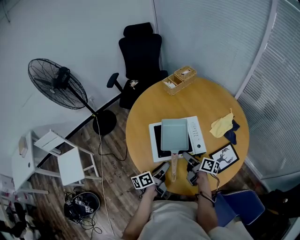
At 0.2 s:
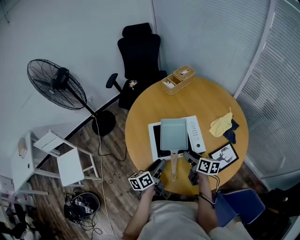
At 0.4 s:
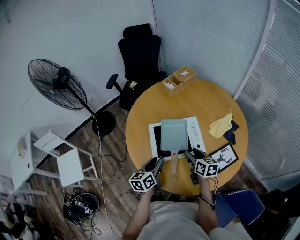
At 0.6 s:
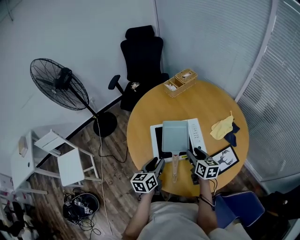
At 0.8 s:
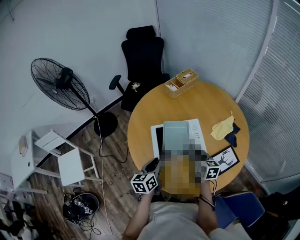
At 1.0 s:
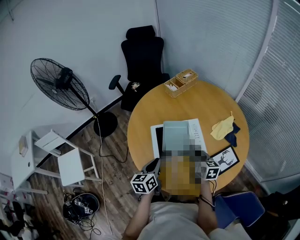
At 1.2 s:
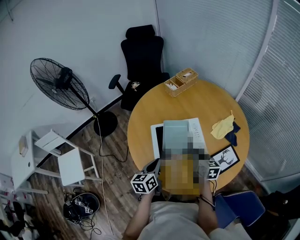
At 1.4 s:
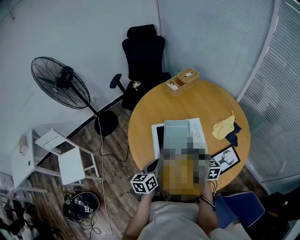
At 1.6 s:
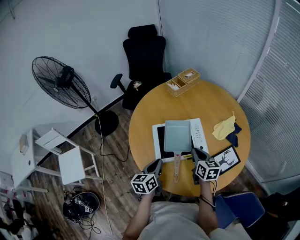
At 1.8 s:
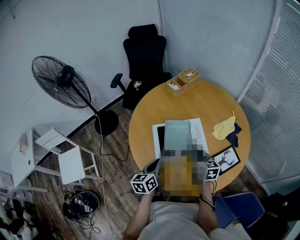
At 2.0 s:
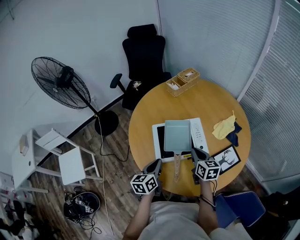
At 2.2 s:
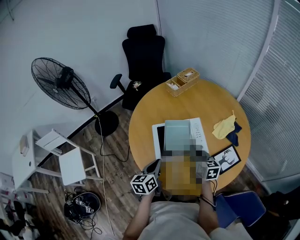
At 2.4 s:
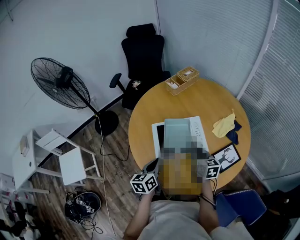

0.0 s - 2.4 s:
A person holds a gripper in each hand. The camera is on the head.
0.0 s - 1.2 s: The right gripper heads upward, covering some 5 cm, changes its angle by approximately 40 degrees, and closes up; the left gripper ends up some 5 cm from where it was, changes its angle by about 40 degrees, and closes its fingers.
1.2 s - 2.4 s: There are only small adjustments of the grippers.

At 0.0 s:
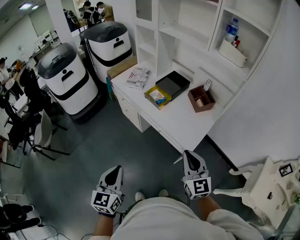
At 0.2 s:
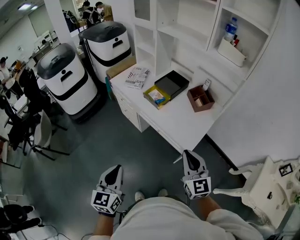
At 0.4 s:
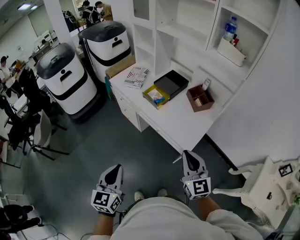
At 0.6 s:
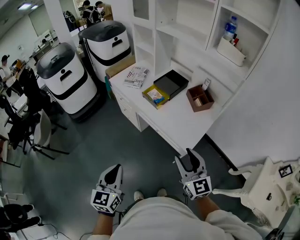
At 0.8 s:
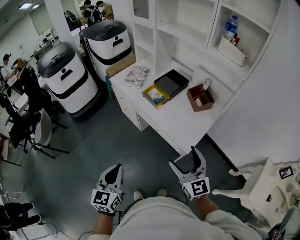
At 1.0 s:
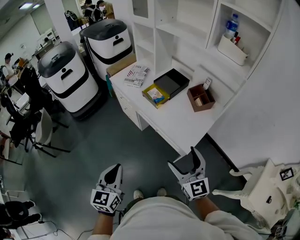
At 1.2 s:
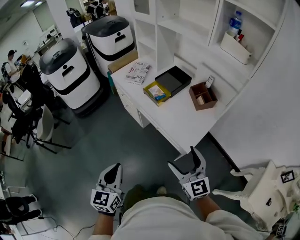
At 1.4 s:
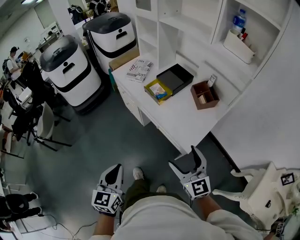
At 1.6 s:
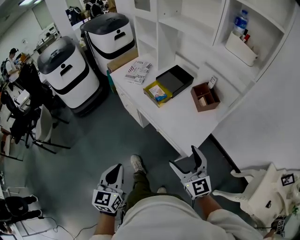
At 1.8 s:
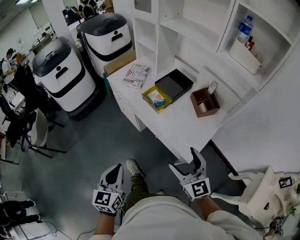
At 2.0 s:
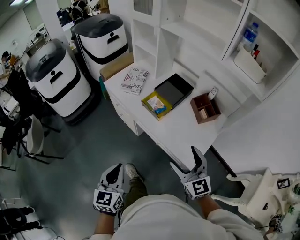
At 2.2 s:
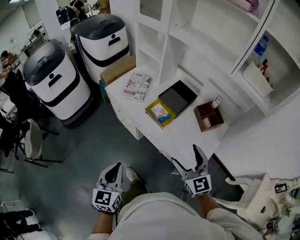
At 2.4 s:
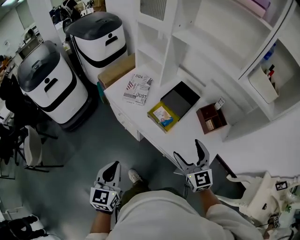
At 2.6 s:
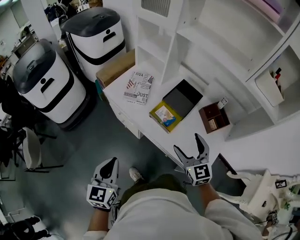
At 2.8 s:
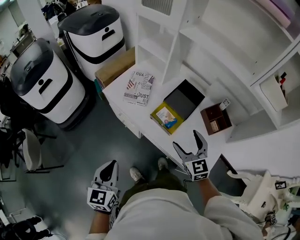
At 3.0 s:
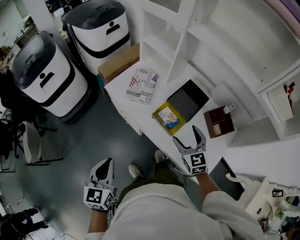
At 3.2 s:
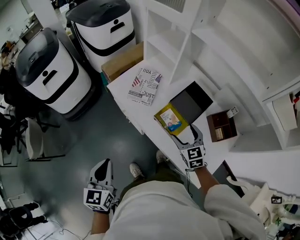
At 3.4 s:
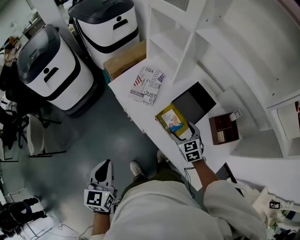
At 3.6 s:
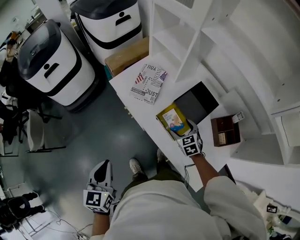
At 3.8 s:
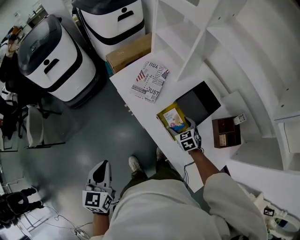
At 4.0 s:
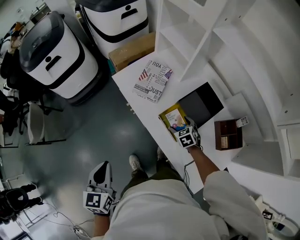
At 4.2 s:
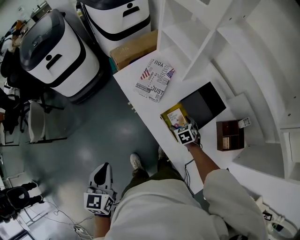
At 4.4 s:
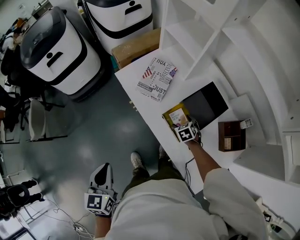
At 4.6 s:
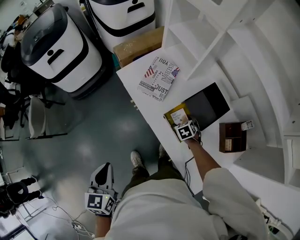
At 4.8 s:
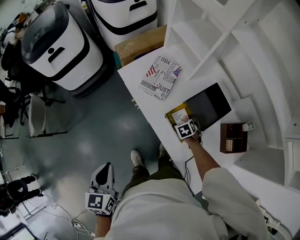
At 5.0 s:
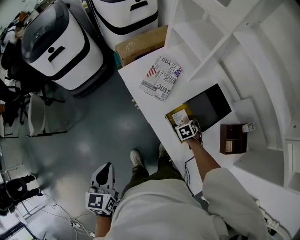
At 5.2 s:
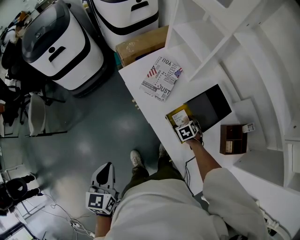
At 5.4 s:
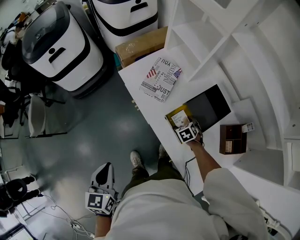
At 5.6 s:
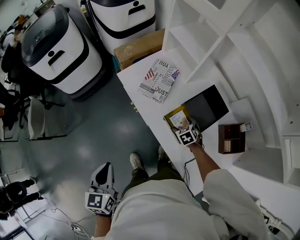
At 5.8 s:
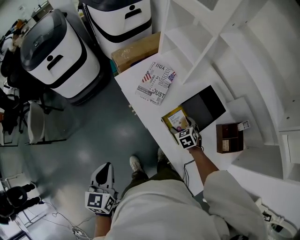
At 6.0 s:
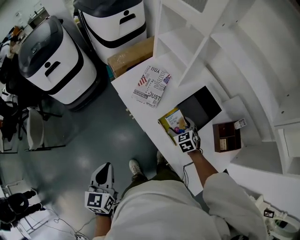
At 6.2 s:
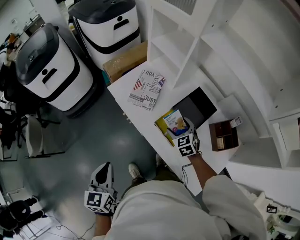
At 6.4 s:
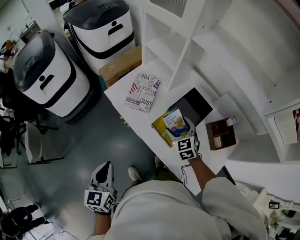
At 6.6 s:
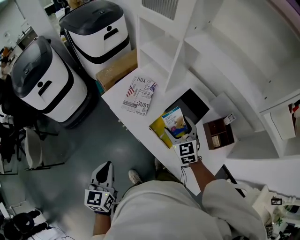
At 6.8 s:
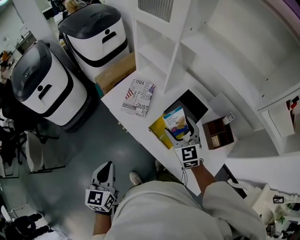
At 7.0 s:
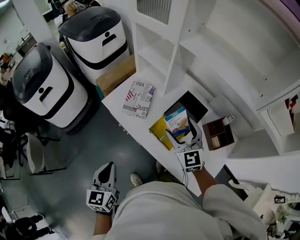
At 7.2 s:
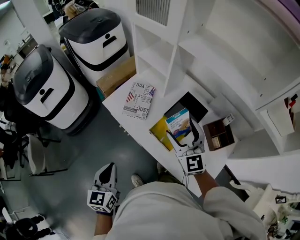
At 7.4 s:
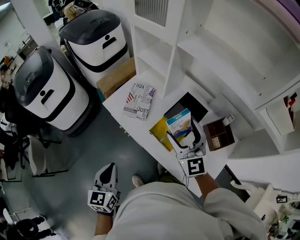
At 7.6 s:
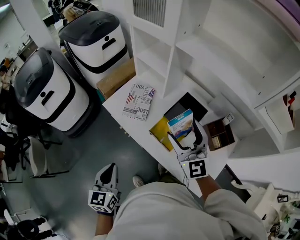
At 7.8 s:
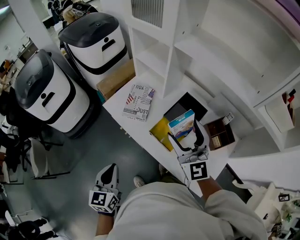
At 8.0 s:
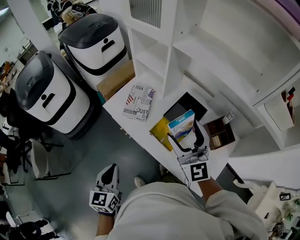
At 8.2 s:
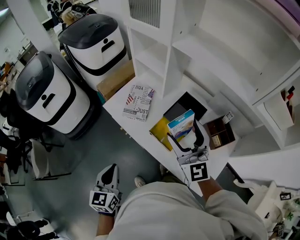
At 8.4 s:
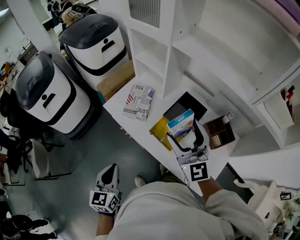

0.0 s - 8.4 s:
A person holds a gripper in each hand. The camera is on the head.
0.0 s - 1.4 s: The right gripper opens up, while the left gripper moves to the right, roughly 5 cm.
1.4 s - 2.8 s: The right gripper travels forward by some 35 cm. The left gripper moves forward and to the left, approximately 35 cm.
2.8 s - 4.2 s: The left gripper swivels about 20 degrees. The right gripper is displaced downward and forward by roughly 30 cm, and angles its fingers downward, by roughly 40 degrees.
4.2 s - 5.6 s: There are only small adjustments of the grippers.
5.6 s - 7.0 s: The right gripper is displaced upward by roughly 30 cm, and points its fingers some 50 degrees further upward. The left gripper travels to the right and forward by approximately 5 cm.
7.0 s - 8.4 s: The right gripper goes approximately 10 cm upward.

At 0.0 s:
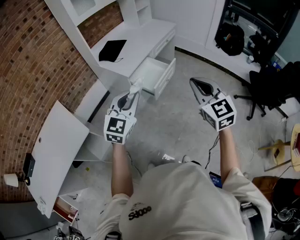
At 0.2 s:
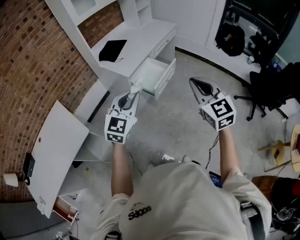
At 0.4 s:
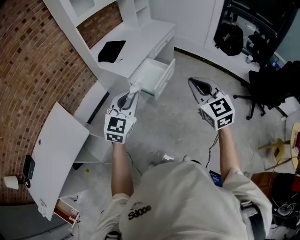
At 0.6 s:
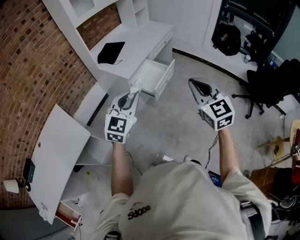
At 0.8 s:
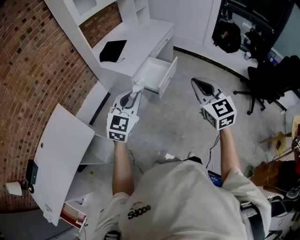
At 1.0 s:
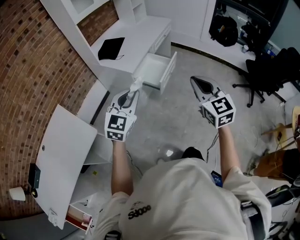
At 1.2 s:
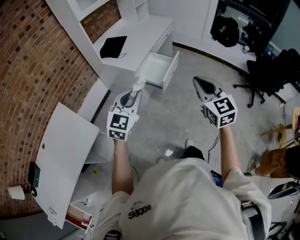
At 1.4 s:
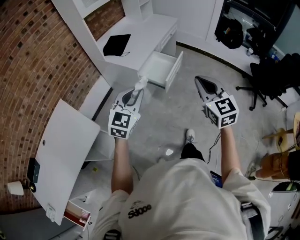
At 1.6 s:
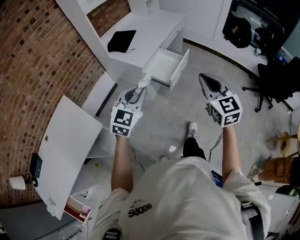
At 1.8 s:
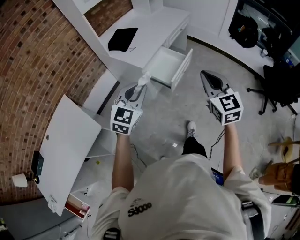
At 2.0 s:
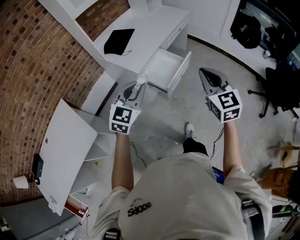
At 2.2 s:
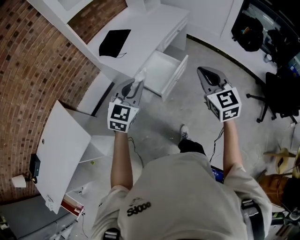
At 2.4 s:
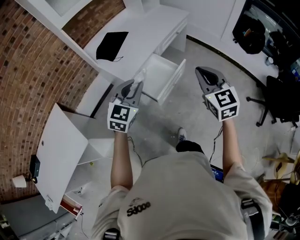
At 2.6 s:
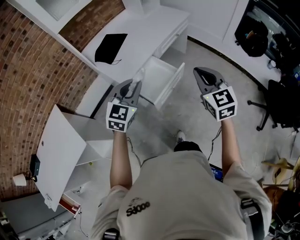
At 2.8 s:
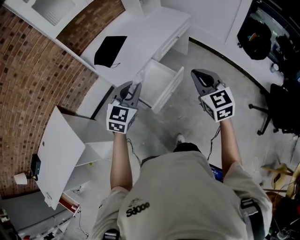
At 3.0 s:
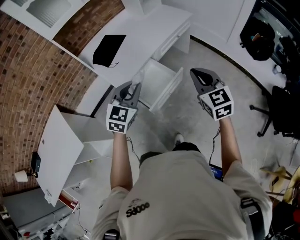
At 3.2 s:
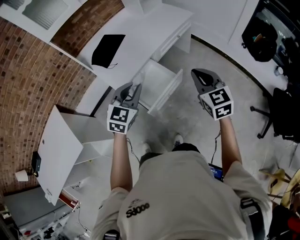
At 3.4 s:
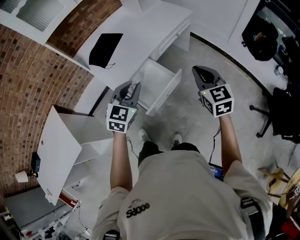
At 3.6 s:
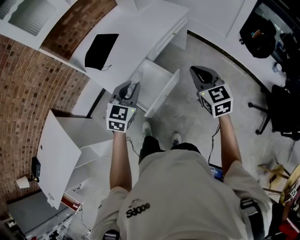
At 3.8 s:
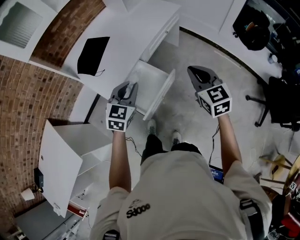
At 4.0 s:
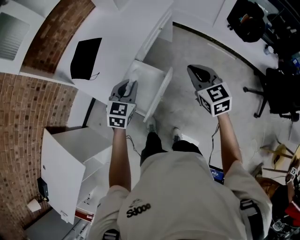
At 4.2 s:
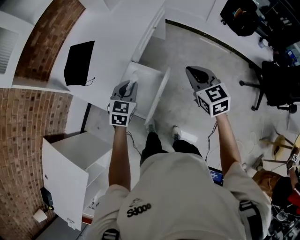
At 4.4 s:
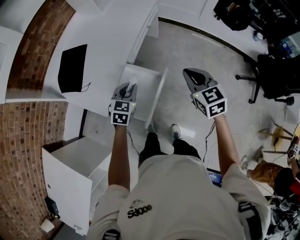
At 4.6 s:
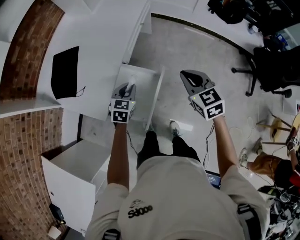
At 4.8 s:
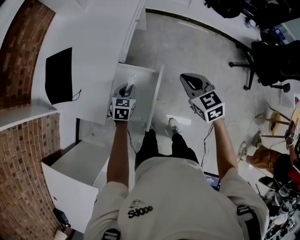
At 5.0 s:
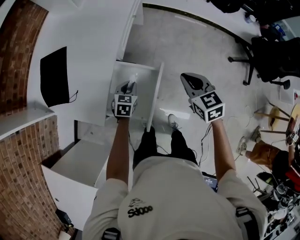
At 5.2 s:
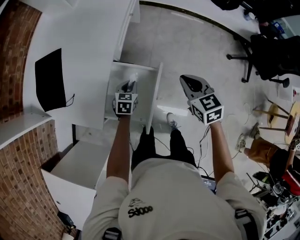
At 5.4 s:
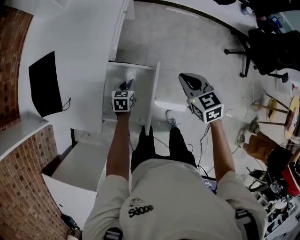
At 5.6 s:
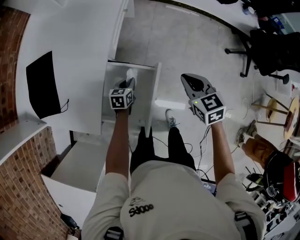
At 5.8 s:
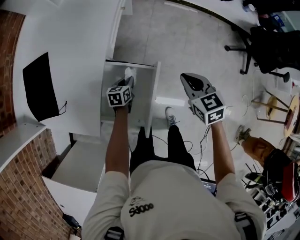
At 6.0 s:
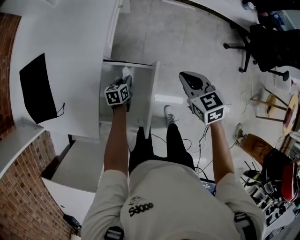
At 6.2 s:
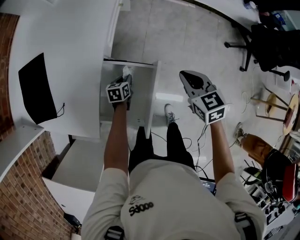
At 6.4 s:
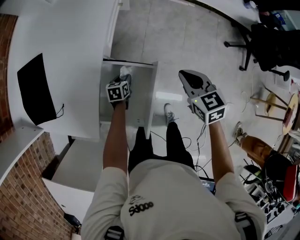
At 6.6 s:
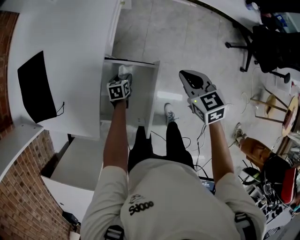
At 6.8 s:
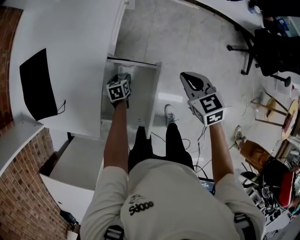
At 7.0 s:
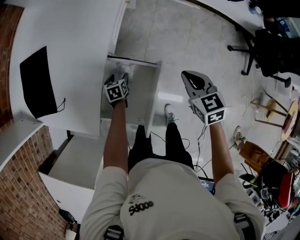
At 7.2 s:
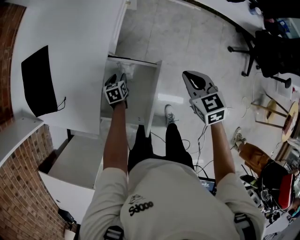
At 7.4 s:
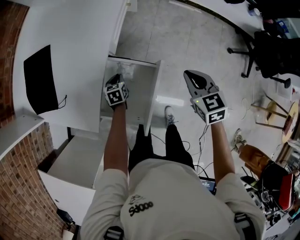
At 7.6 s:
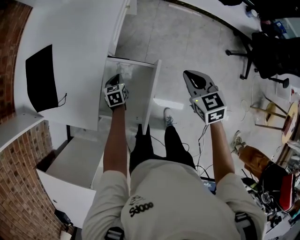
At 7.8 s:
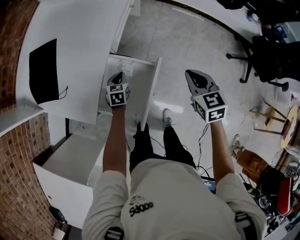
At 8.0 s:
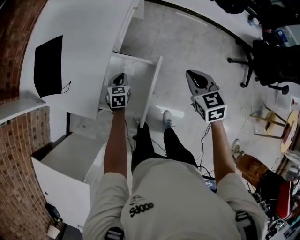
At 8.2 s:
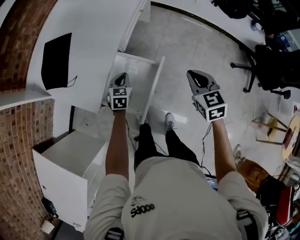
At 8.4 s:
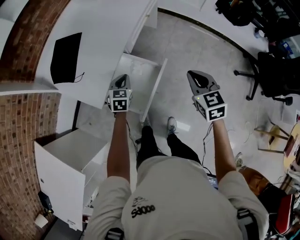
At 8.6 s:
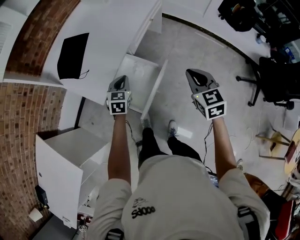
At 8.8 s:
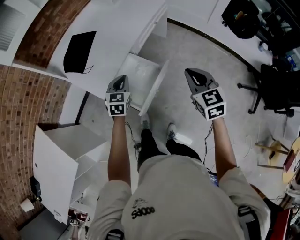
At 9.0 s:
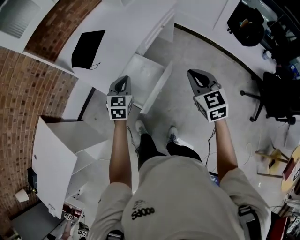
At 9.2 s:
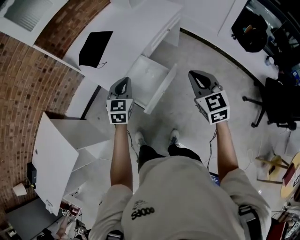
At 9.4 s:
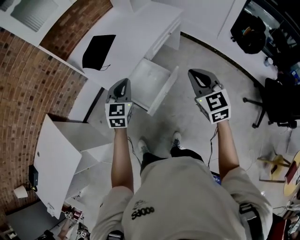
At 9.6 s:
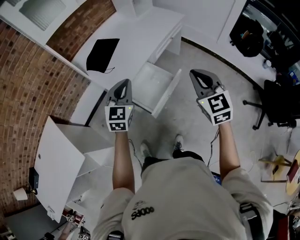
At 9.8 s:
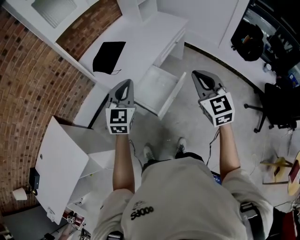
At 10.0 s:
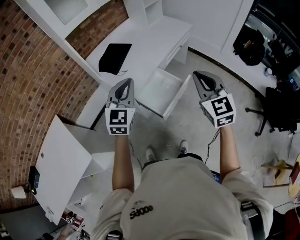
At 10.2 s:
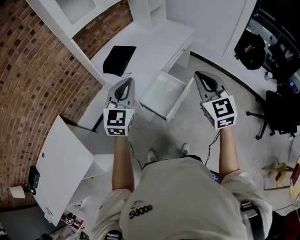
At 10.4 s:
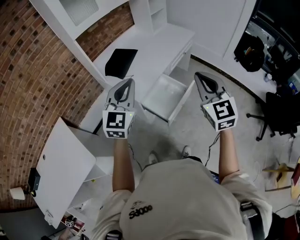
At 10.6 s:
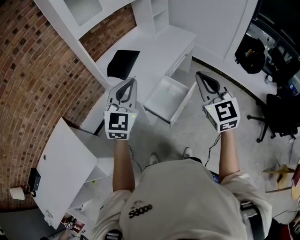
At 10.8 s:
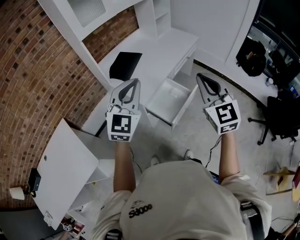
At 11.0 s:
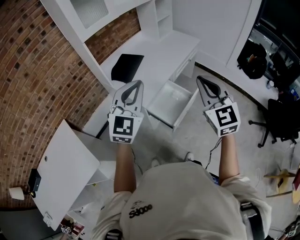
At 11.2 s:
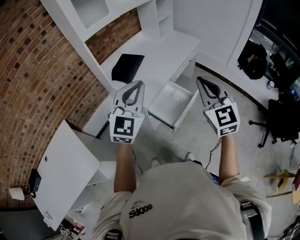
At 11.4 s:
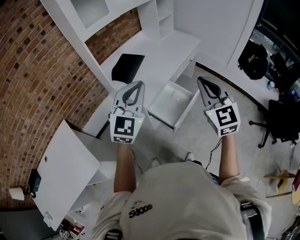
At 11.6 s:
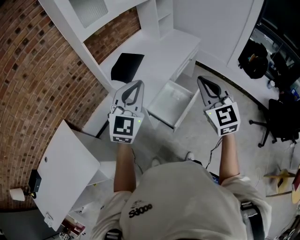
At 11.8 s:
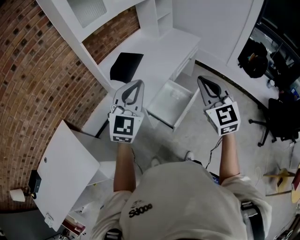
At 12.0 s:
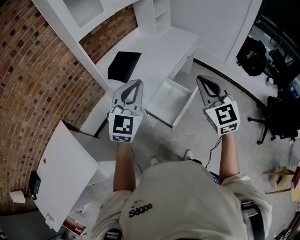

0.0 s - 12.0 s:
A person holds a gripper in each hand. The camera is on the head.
0.0 s - 1.6 s: The grippers both shift to the left by about 10 cm.
1.6 s - 3.0 s: The grippers both shift forward and to the right by about 40 cm.
3.0 s - 4.4 s: The left gripper moves forward and downward, approximately 25 cm, and changes its angle by some 20 degrees. Meanwhile the right gripper travels forward and downward by approximately 20 cm, and swivels approximately 20 degrees.
4.4 s - 6.0 s: The right gripper shifts about 15 cm downward, and swivels about 20 degrees; the left gripper goes about 30 cm downward, and swivels approximately 40 degrees.
6.0 s - 7.6 s: The left gripper shifts some 5 cm to the left, rotates some 20 degrees, and opens, then closes once more.
7.6 s - 9.0 s: The right gripper is displaced upward and backward by about 20 cm, and swivels approximately 30 degrees. Meanwhile the left gripper moves upward and backward, some 35 cm, and rotates roughly 30 degrees.
9.0 s - 10.4 s: The left gripper travels upward, to the left and backward by about 30 cm, and rotates roughly 30 degrees, while the right gripper goes some 25 cm to the left, upward and backward, and changes its angle by about 20 degrees.
10.4 s - 12.0 s: The grippers make only small movements.
